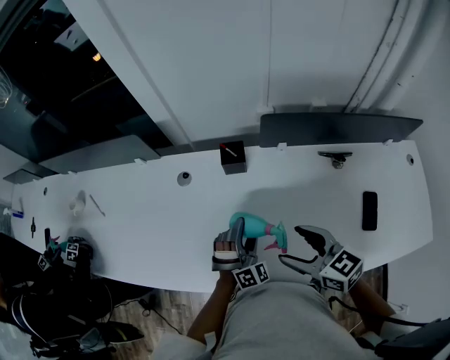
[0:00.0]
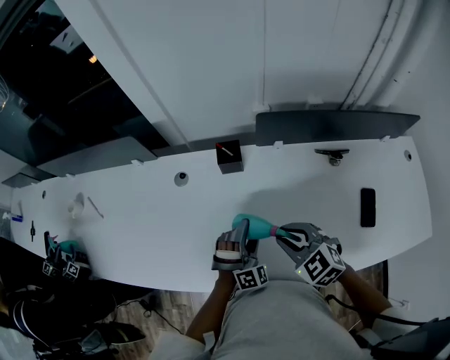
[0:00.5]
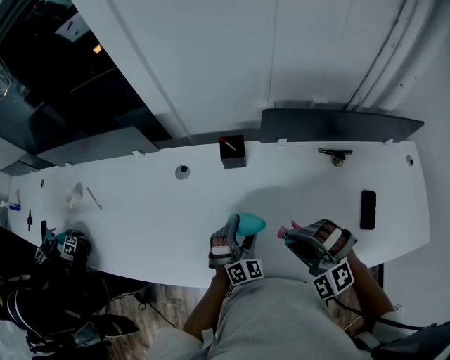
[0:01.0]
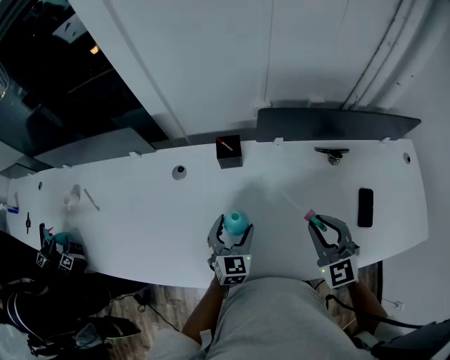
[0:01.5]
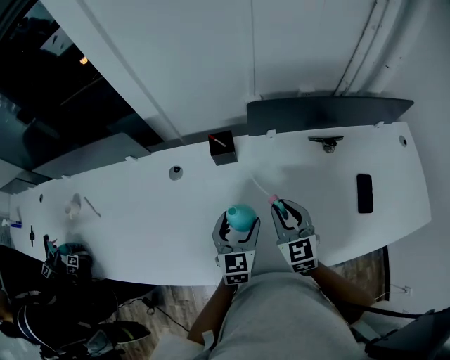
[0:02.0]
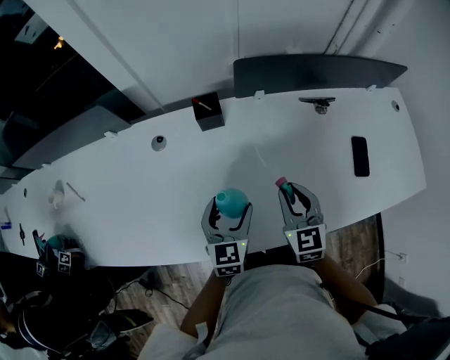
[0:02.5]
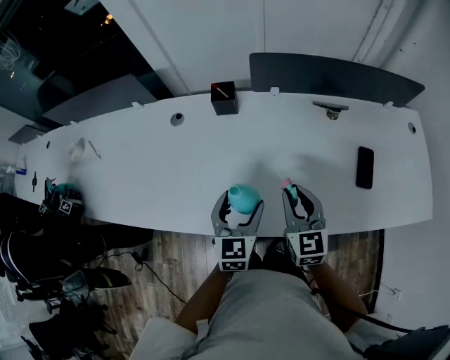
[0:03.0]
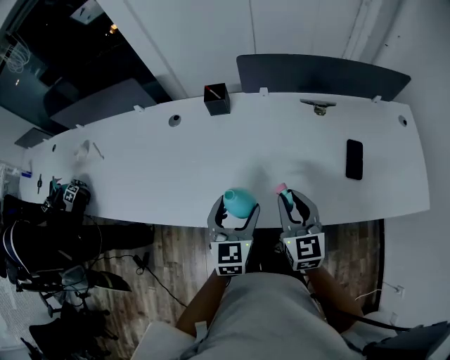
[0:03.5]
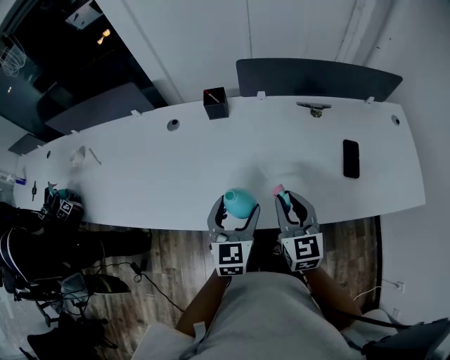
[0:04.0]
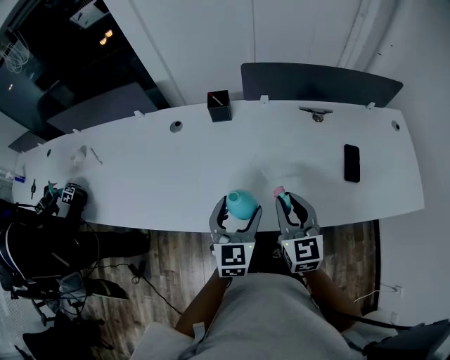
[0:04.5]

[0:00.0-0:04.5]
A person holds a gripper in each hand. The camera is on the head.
0:00.0 to 0:02.0: The left gripper twists about 60 degrees counterclockwise, seen from behind, while the right gripper heads forward and downward, covering some 10 cm, travels to the right and back again, approximately 10 cm each way, turns by approximately 40 degrees, and closes.
0:02.0 to 0:04.5: The grippers both shift backward by about 20 cm.

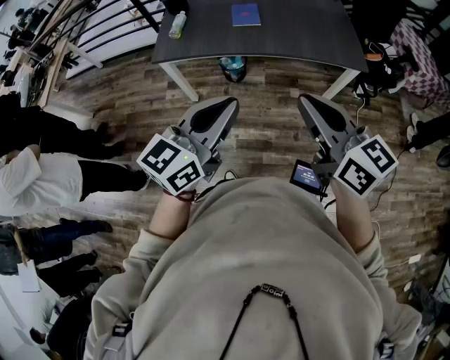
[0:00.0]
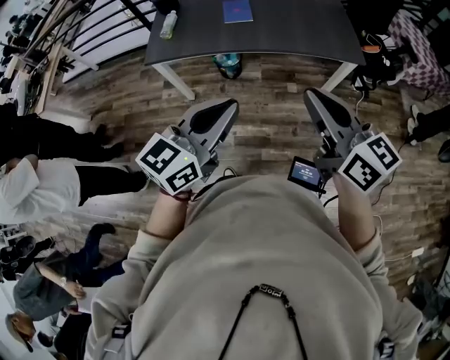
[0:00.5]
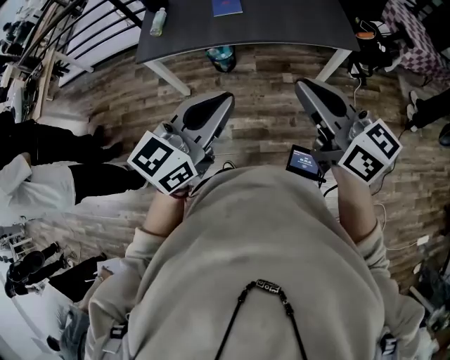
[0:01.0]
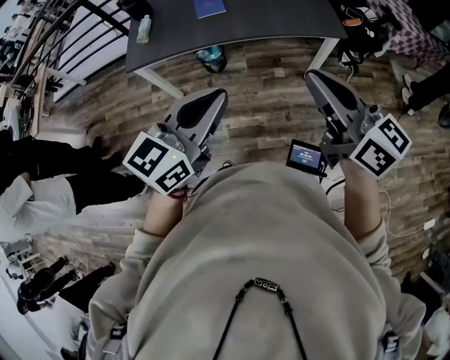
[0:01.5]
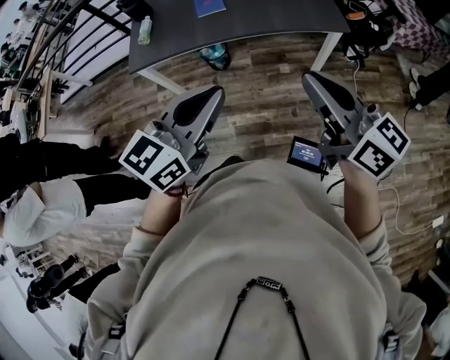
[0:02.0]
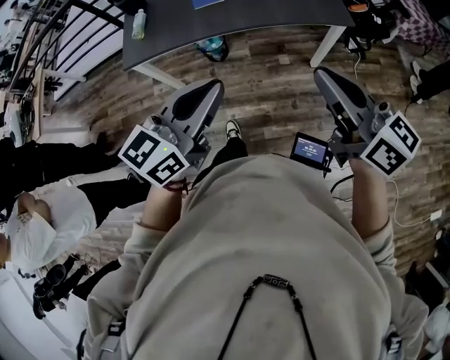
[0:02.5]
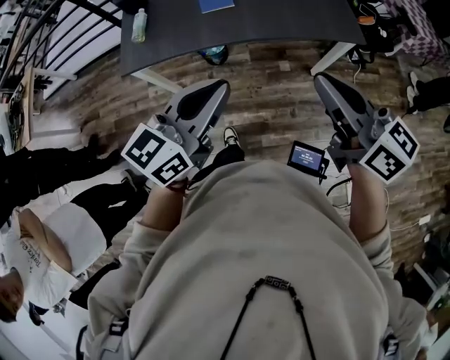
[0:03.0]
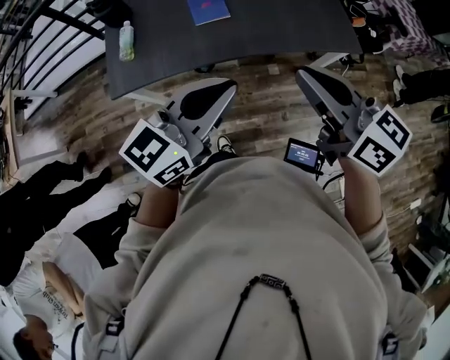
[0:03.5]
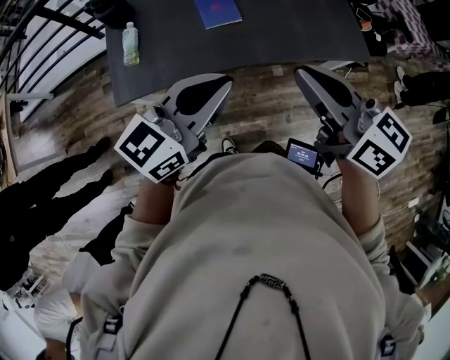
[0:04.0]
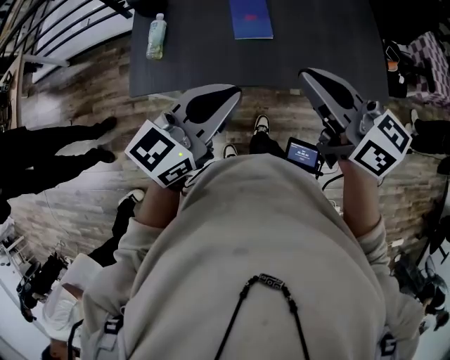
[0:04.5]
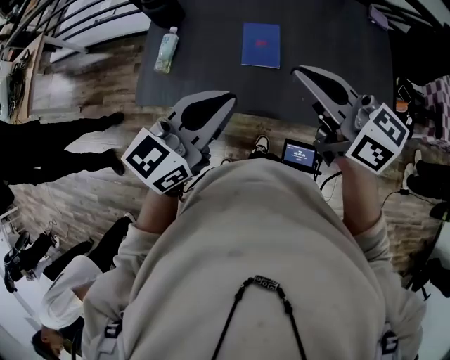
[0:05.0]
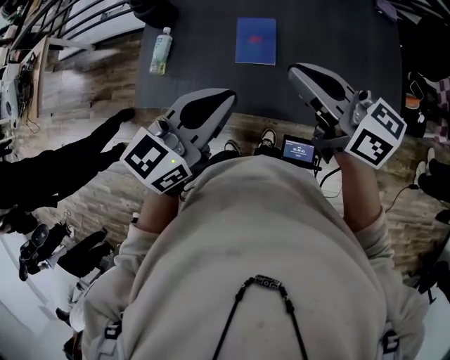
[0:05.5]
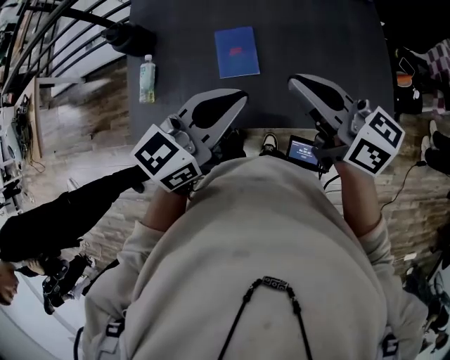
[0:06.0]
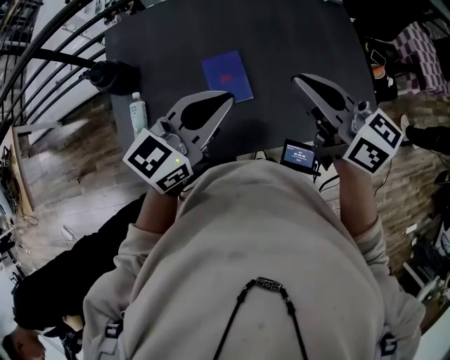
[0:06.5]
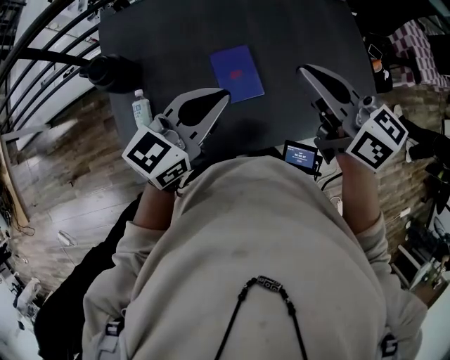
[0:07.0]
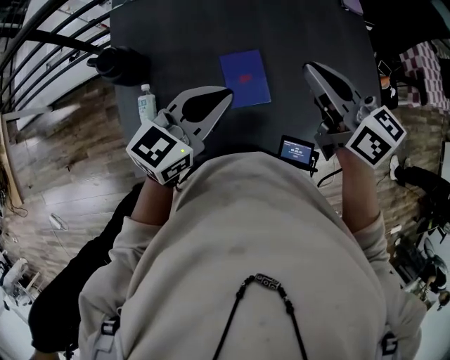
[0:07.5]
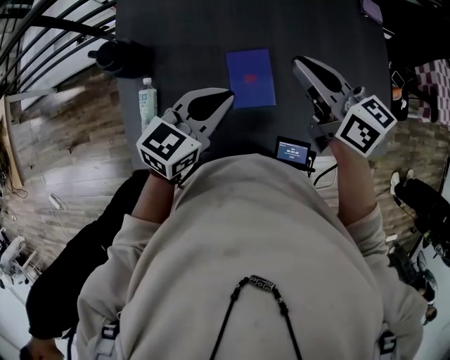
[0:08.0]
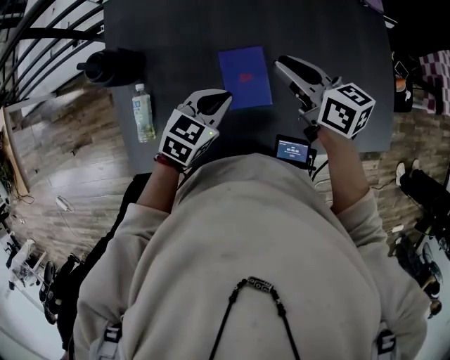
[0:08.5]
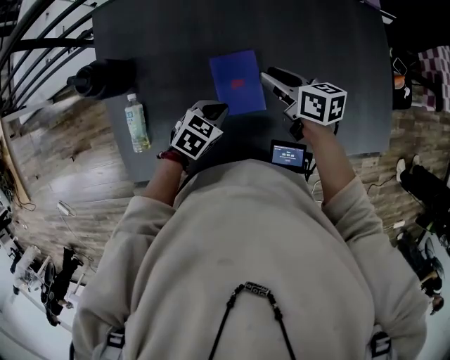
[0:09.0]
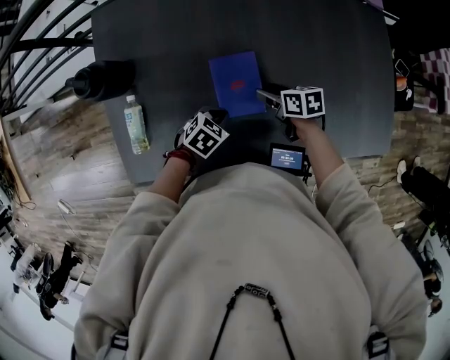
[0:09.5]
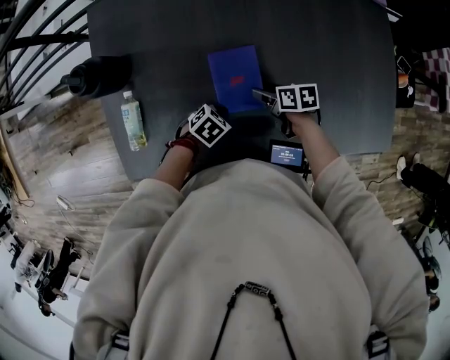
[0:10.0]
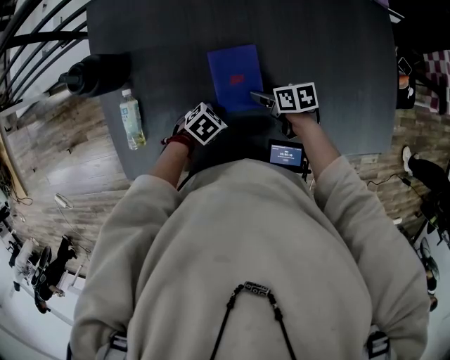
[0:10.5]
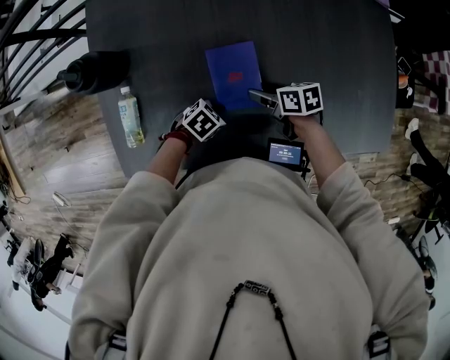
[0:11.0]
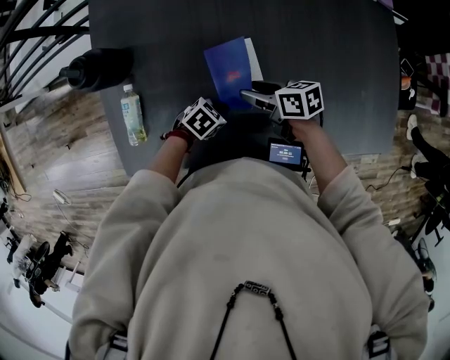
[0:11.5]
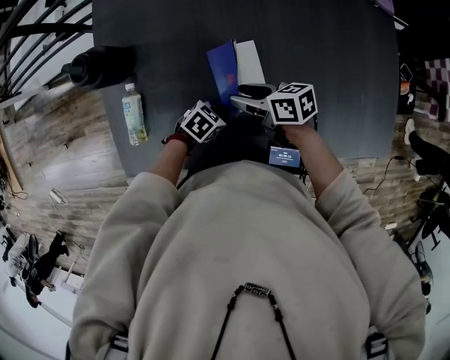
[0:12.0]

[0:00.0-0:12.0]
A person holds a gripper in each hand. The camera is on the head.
0:00.0 to 0:02.0: Both grippers travel together to the right, roughly 10 cm.
0:02.0 to 0:04.0: Both grippers move forward and to the left, roughly 35 cm.
0:04.0 to 0:06.0: The left gripper moves forward and to the right, roughly 25 cm. Meanwhile the right gripper shifts roughly 25 cm forward.
0:06.0 to 0:08.0: The left gripper is displaced to the left, forward and downward by approximately 25 cm. Meanwhile the right gripper shifts about 20 cm forward and to the left.
0:08.0 to 0:10.0: The two grippers go about 30 cm downward. The right gripper tips its fingers downward by about 30 degrees, and opens up. The left gripper tilts its fingers approximately 50 degrees downward.
0:10.0 to 0:12.0: The right gripper shifts roughly 10 cm upward, and turns by roughly 20 degrees.

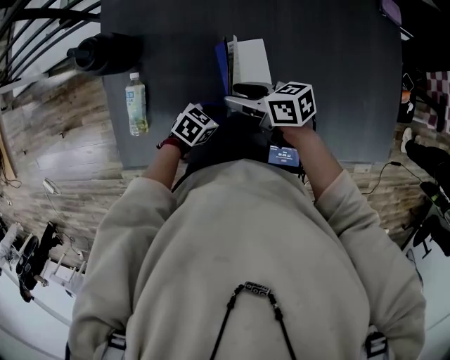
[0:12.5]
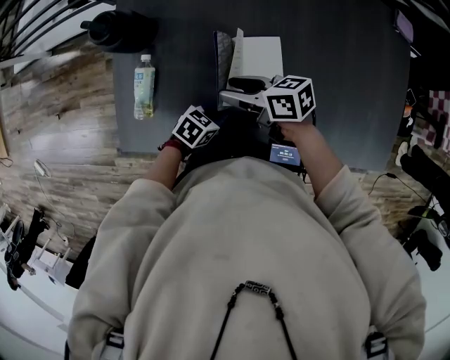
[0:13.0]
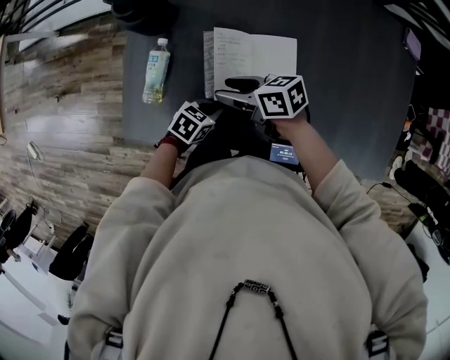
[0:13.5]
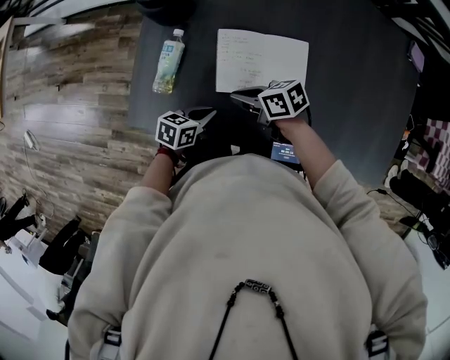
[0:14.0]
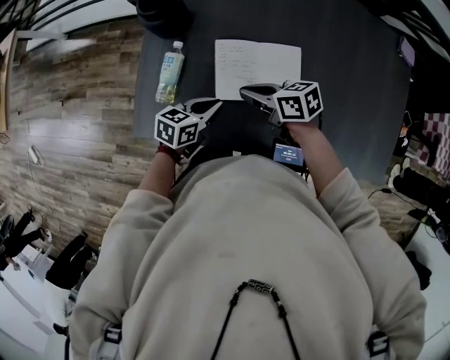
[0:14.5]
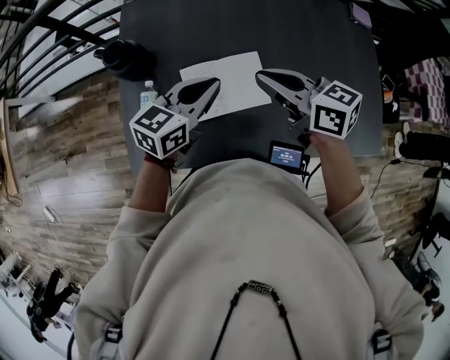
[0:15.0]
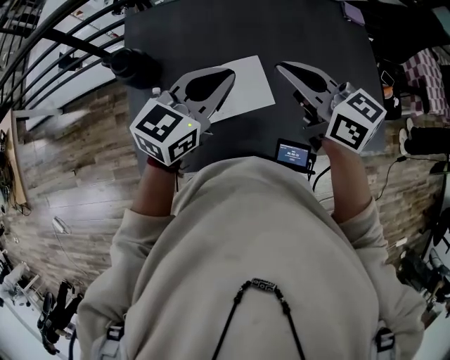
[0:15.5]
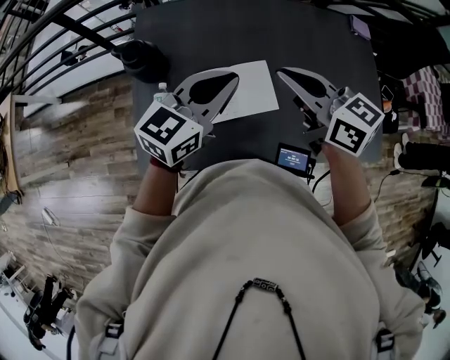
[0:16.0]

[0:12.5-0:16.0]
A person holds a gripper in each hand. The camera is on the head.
0:12.5 to 0:14.5: The right gripper shifts by about 10 cm, and closes its fingers, while the left gripper shifts by approximately 15 cm, and rotates about 40 degrees.
0:14.5 to 0:16.0: Both grippers move upward, approximately 25 cm. The left gripper swivels some 40 degrees. Meanwhile the right gripper rotates some 40 degrees.

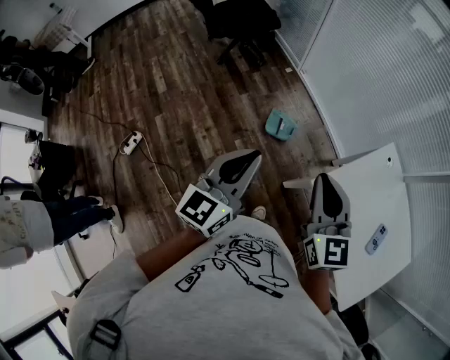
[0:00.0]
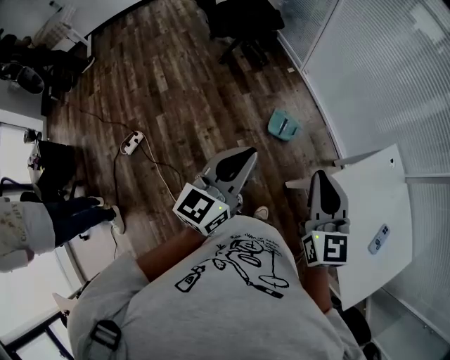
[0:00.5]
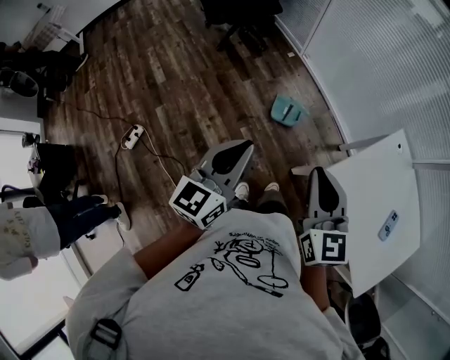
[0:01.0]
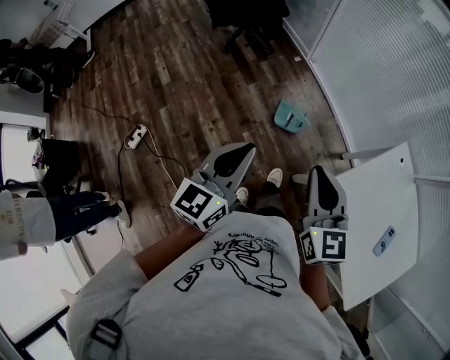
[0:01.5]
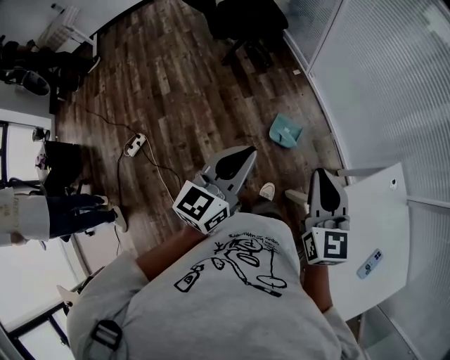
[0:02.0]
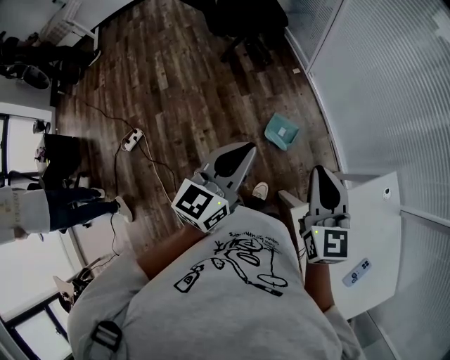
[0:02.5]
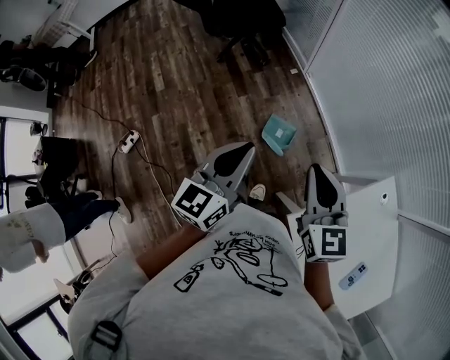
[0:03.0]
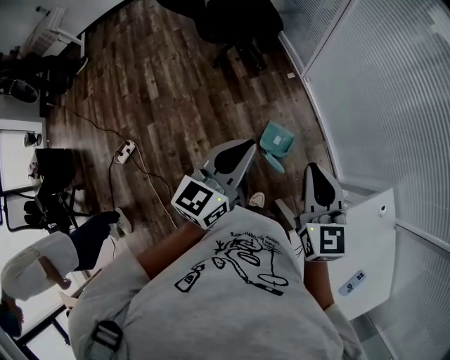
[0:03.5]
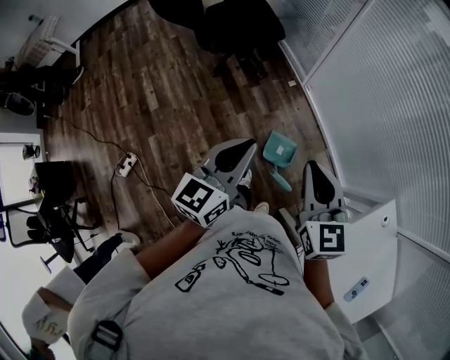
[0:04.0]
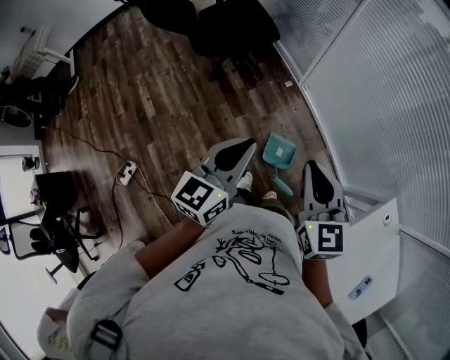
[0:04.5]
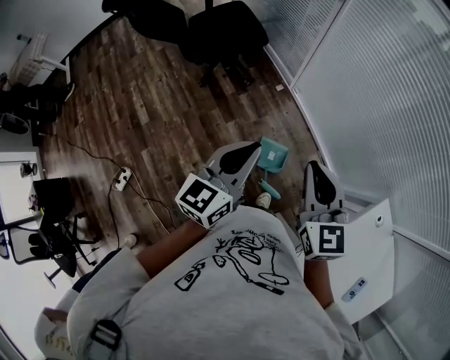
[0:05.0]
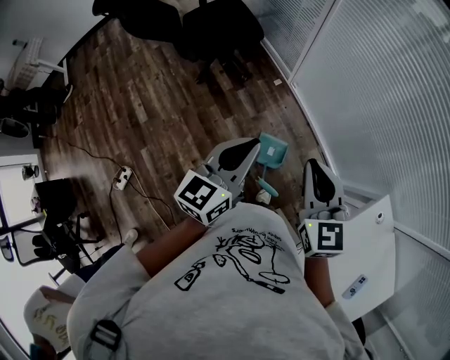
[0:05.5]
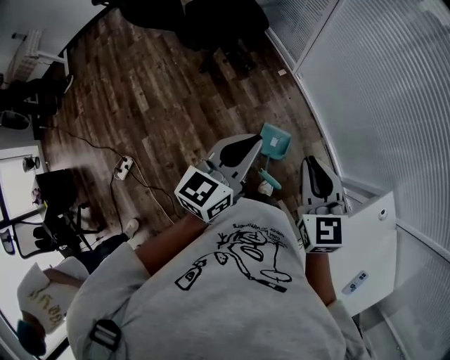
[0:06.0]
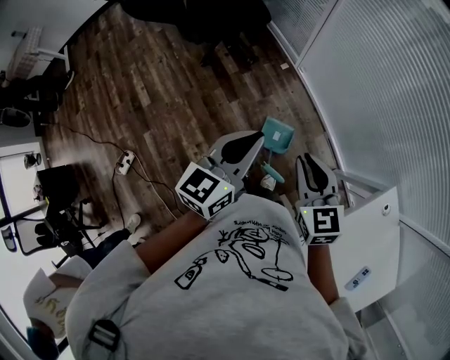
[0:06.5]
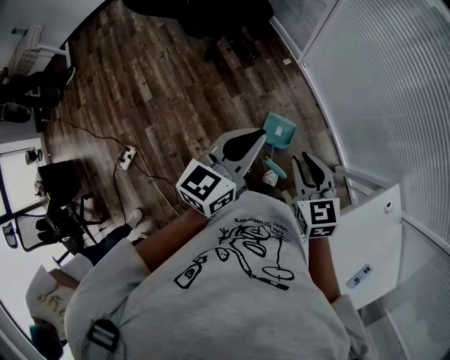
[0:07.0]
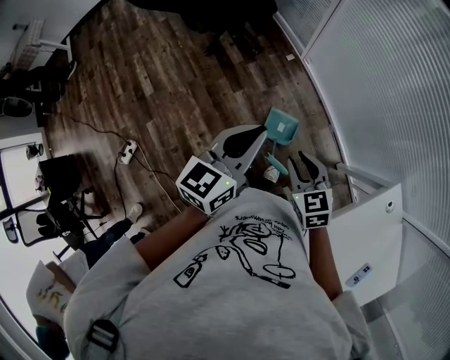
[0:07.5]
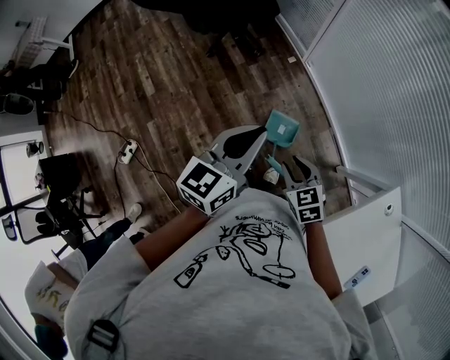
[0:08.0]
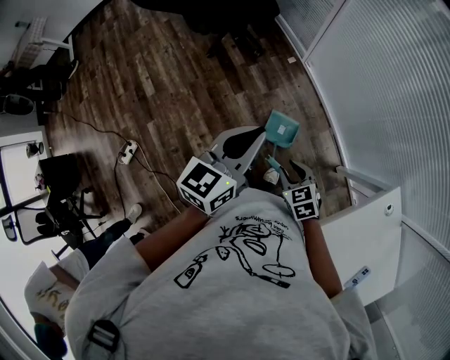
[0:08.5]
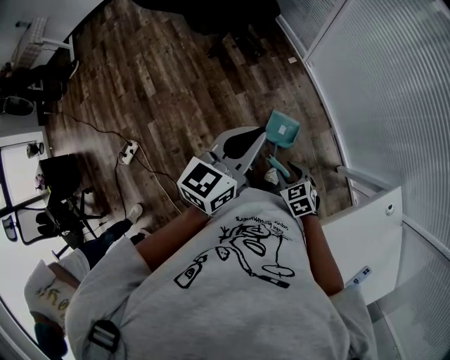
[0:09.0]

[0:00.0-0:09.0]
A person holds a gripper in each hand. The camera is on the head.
0:00.0 to 0:02.0: Both grippers travel together forward, approximately 15 cm.
0:02.0 to 0:04.5: The grippers both shift forward by some 25 cm.
0:04.5 to 0:07.0: The right gripper shifts roughly 10 cm downward; the left gripper goes roughly 10 cm to the right.
0:07.0 to 0:09.0: The right gripper moves downward, some 20 cm, and swivels some 30 degrees.
